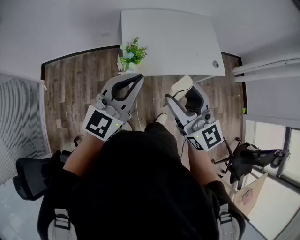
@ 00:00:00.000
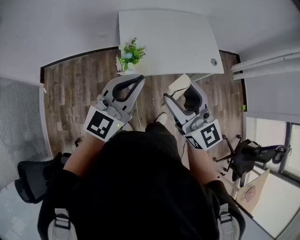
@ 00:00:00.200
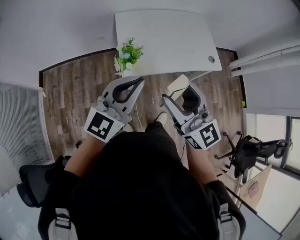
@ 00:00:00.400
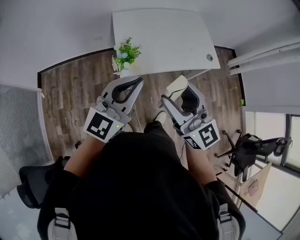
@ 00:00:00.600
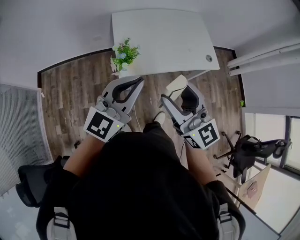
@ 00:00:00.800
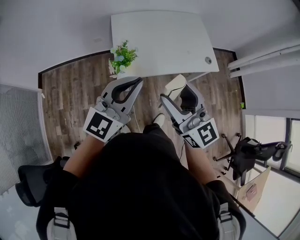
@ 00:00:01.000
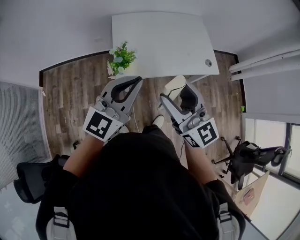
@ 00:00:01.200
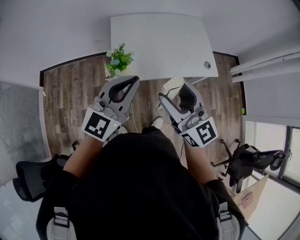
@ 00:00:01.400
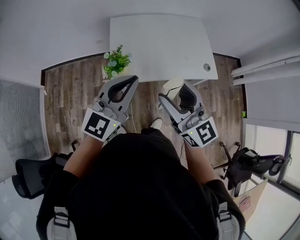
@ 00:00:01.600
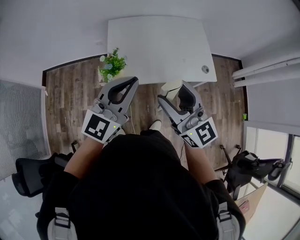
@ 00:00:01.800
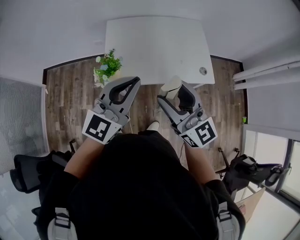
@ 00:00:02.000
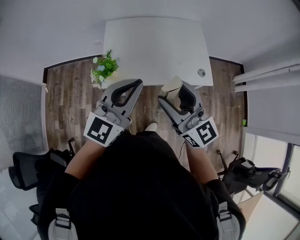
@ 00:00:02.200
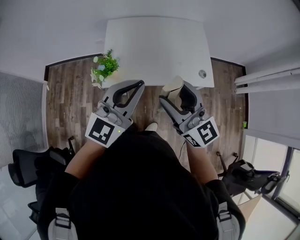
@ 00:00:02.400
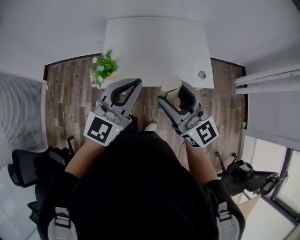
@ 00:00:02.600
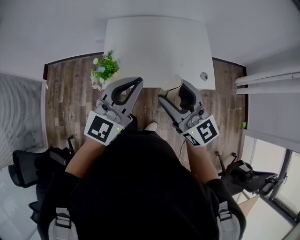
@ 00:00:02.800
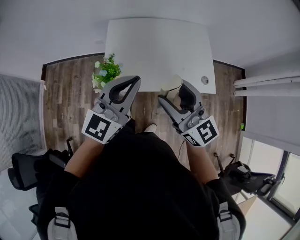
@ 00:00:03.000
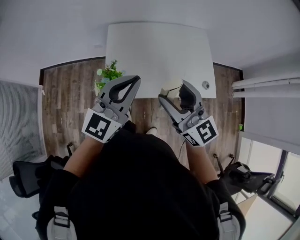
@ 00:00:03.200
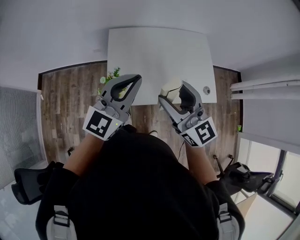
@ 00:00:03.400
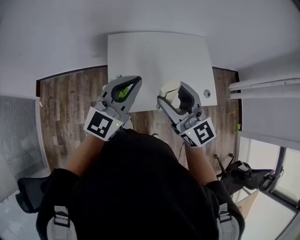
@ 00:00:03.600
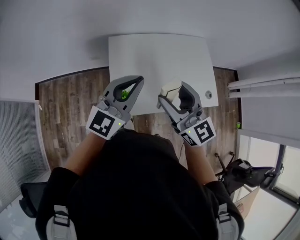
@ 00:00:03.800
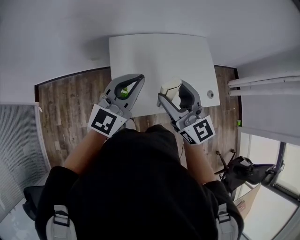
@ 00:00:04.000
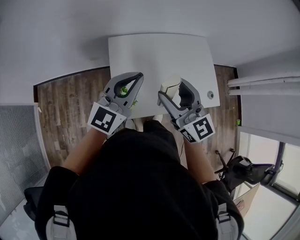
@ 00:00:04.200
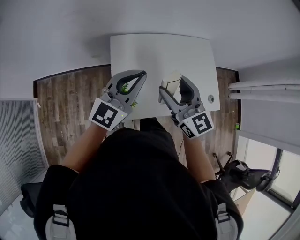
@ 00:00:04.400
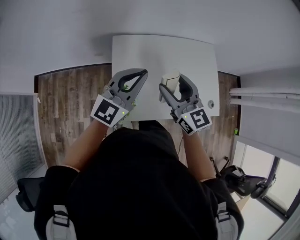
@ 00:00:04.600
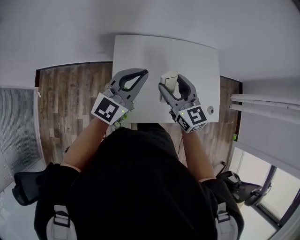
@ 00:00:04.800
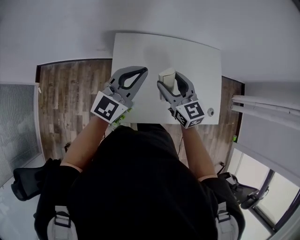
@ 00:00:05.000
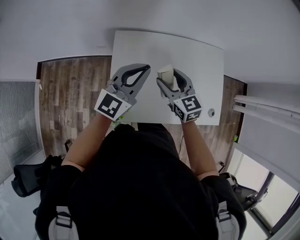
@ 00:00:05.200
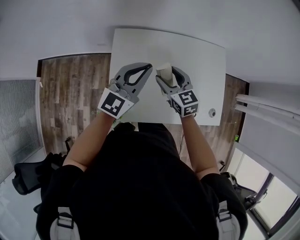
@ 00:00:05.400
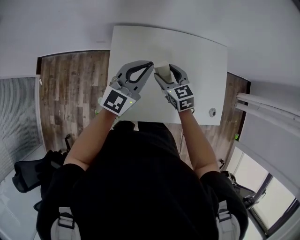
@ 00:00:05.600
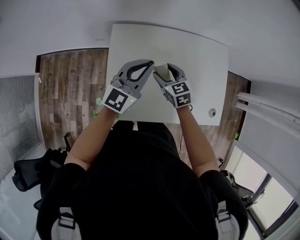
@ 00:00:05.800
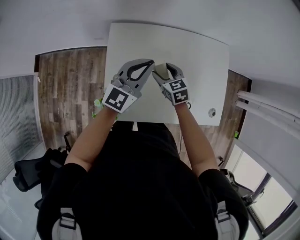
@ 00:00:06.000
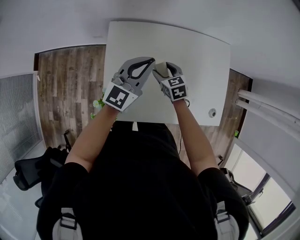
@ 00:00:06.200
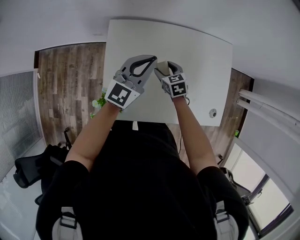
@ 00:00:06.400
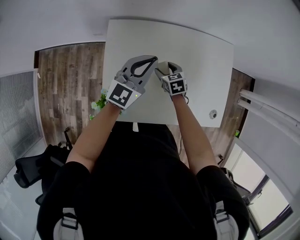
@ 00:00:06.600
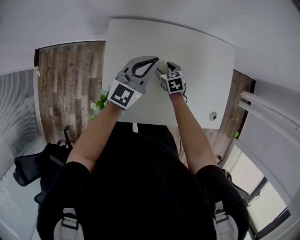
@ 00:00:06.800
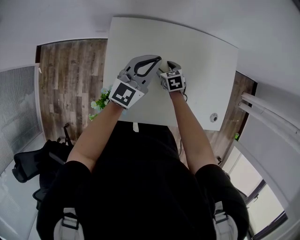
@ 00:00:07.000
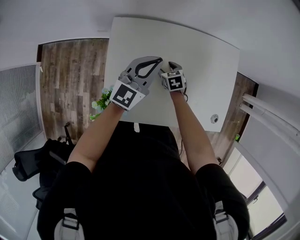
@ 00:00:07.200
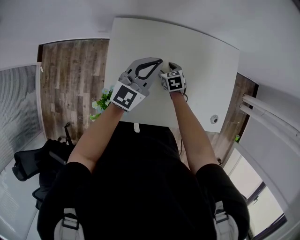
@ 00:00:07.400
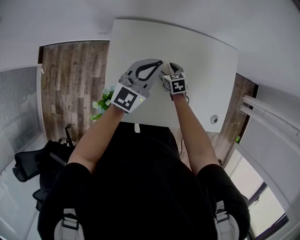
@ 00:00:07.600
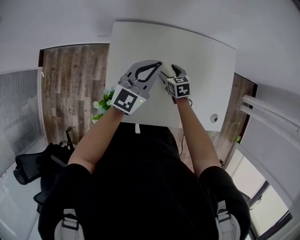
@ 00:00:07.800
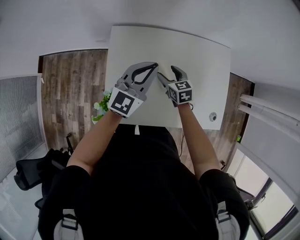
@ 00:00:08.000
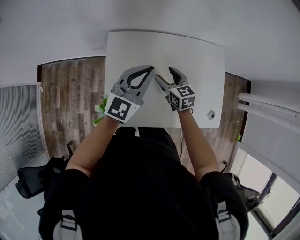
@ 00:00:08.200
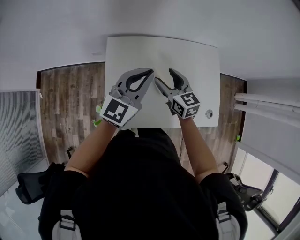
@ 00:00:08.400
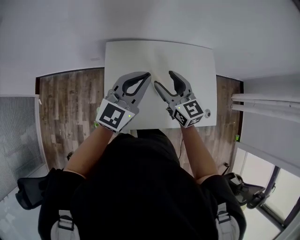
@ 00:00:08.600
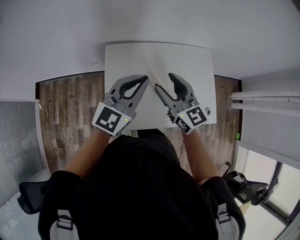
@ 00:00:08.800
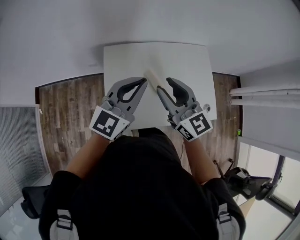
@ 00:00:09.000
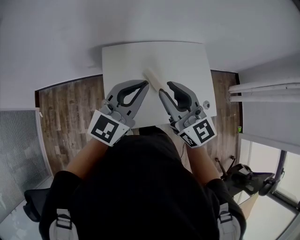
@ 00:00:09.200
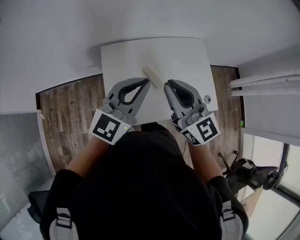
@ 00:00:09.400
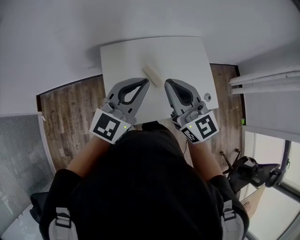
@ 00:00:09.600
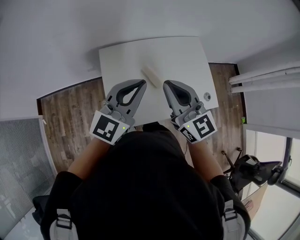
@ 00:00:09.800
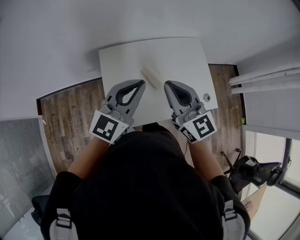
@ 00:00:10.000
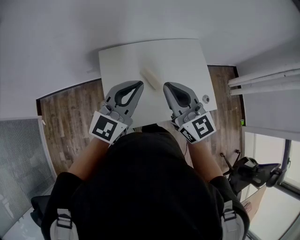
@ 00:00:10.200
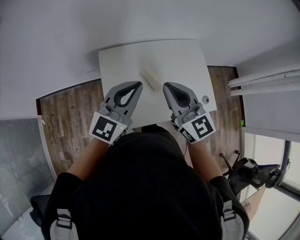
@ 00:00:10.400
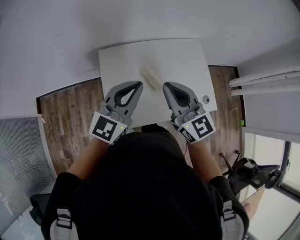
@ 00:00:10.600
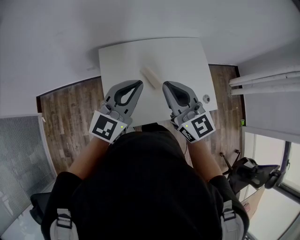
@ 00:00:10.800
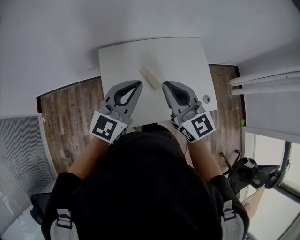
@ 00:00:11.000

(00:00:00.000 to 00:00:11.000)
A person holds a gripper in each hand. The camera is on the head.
00:00:00.000 - 00:00:01.600: The grippers both shift to the right by roughly 10 cm.
00:00:01.600 - 00:00:03.200: Both grippers travel together forward, approximately 10 cm.
00:00:03.200 - 00:00:04.800: The right gripper shifts some 25 cm forward and downward, while the left gripper is displaced forward by roughly 20 cm.
00:00:04.800 - 00:00:06.200: The left gripper moves downward, forward and to the right, about 15 cm. Meanwhile the right gripper travels downward and forward by about 25 cm, and angles its fingers downward, by about 30 degrees.
00:00:07.800 - 00:00:09.400: The left gripper goes approximately 25 cm upward and backward. The right gripper moves upward and backward, some 50 cm, angles its fingers upward, by roughly 50 degrees, and closes its fingers.
00:00:09.400 - 00:00:11.000: The grippers stay close to where they were, moving slightly.

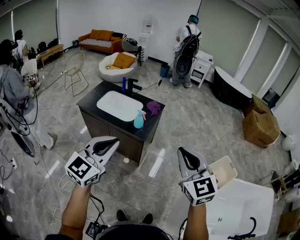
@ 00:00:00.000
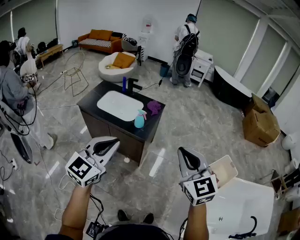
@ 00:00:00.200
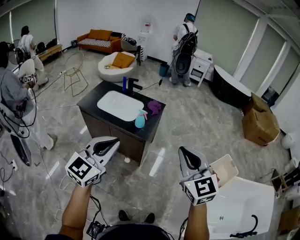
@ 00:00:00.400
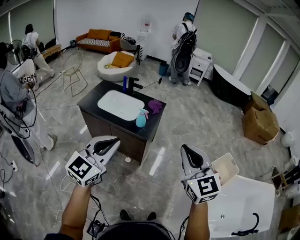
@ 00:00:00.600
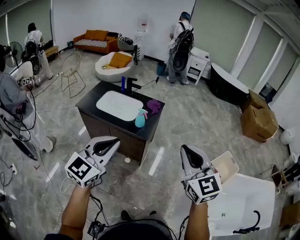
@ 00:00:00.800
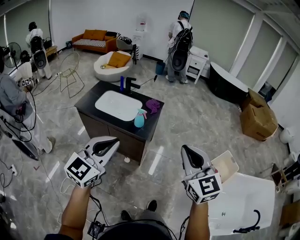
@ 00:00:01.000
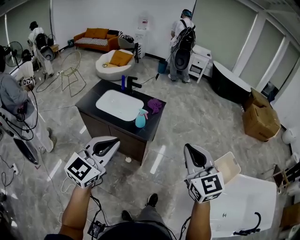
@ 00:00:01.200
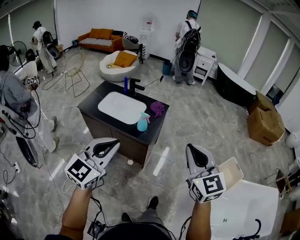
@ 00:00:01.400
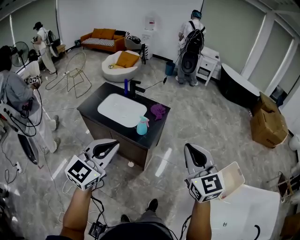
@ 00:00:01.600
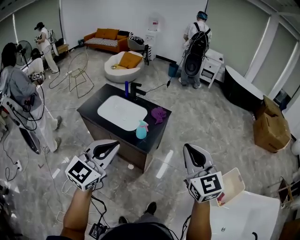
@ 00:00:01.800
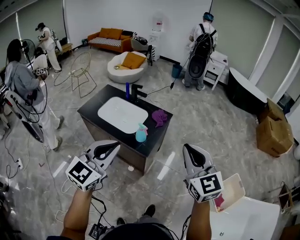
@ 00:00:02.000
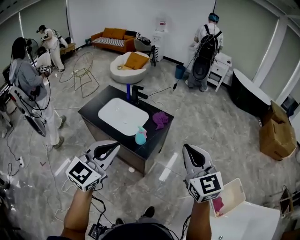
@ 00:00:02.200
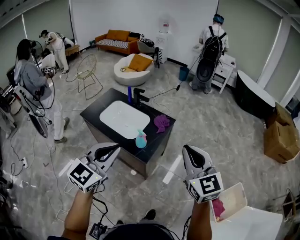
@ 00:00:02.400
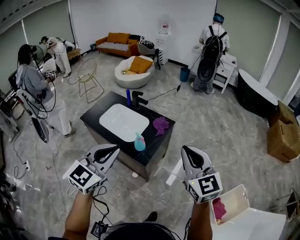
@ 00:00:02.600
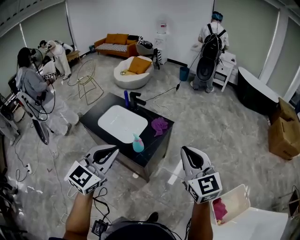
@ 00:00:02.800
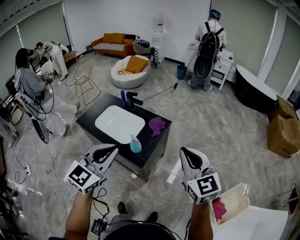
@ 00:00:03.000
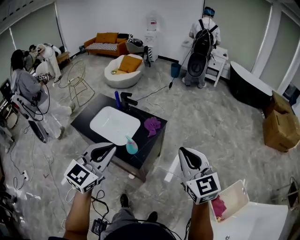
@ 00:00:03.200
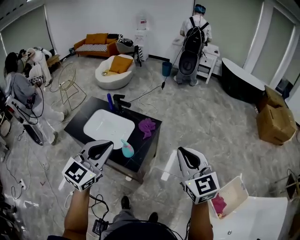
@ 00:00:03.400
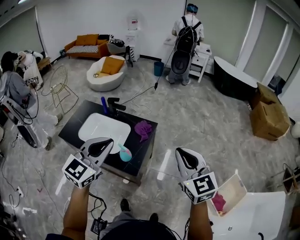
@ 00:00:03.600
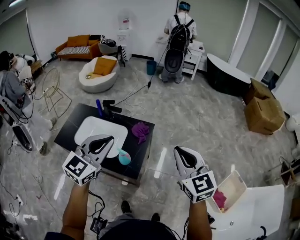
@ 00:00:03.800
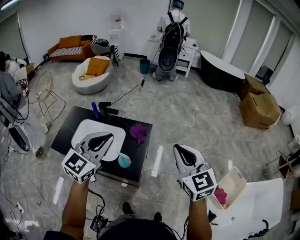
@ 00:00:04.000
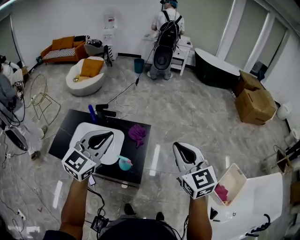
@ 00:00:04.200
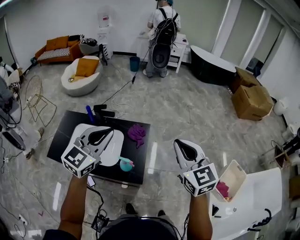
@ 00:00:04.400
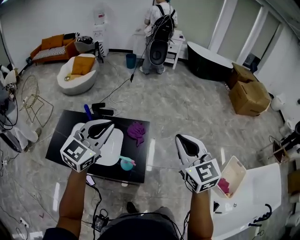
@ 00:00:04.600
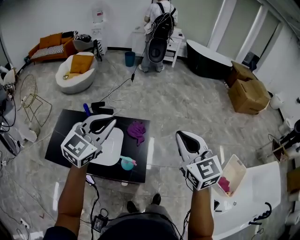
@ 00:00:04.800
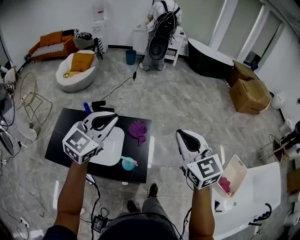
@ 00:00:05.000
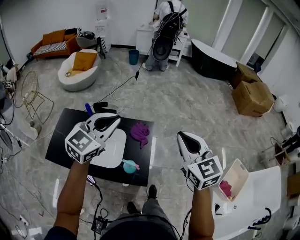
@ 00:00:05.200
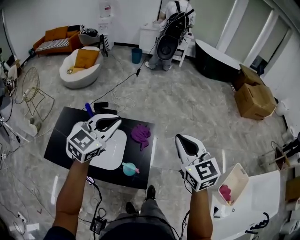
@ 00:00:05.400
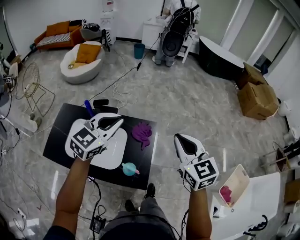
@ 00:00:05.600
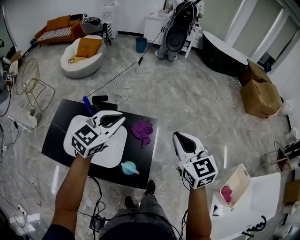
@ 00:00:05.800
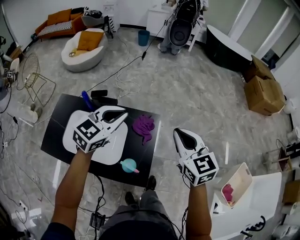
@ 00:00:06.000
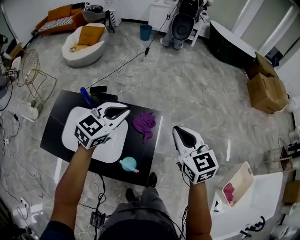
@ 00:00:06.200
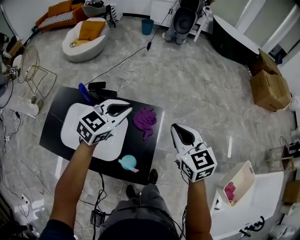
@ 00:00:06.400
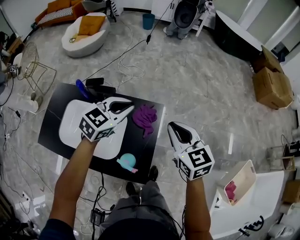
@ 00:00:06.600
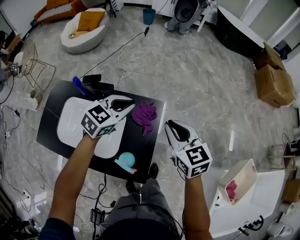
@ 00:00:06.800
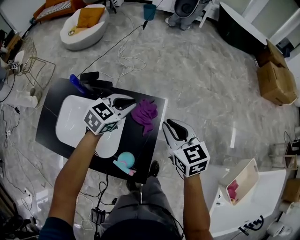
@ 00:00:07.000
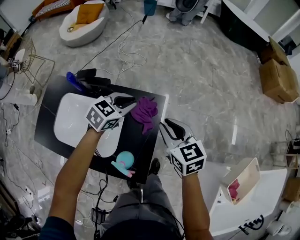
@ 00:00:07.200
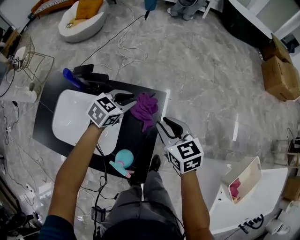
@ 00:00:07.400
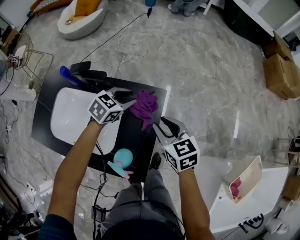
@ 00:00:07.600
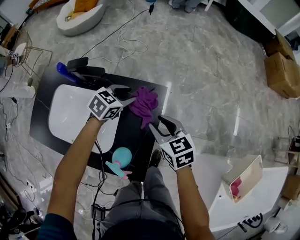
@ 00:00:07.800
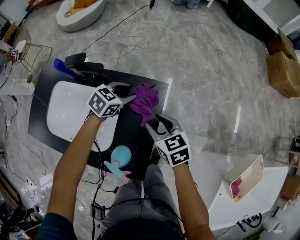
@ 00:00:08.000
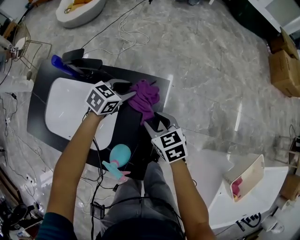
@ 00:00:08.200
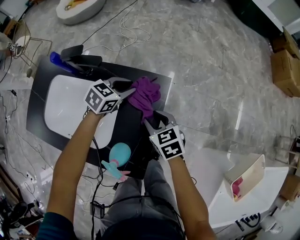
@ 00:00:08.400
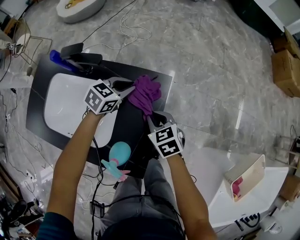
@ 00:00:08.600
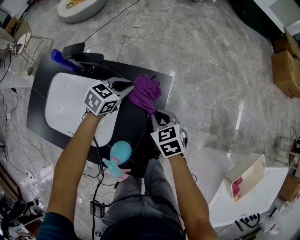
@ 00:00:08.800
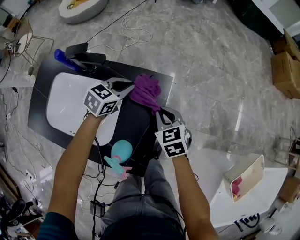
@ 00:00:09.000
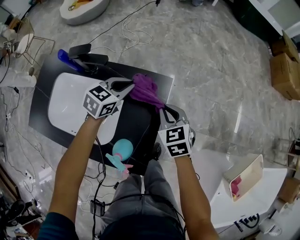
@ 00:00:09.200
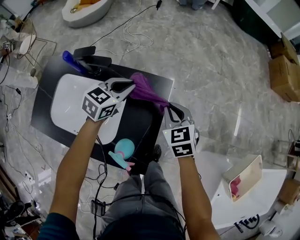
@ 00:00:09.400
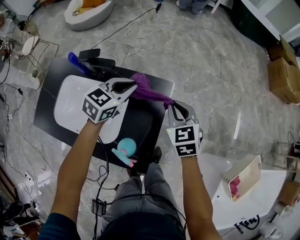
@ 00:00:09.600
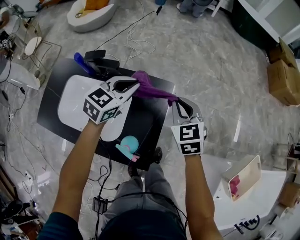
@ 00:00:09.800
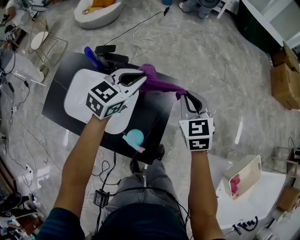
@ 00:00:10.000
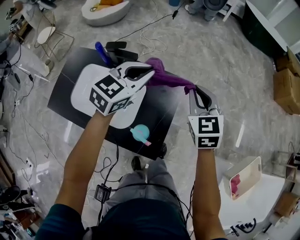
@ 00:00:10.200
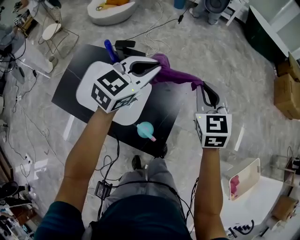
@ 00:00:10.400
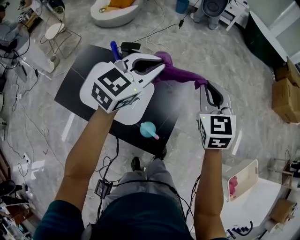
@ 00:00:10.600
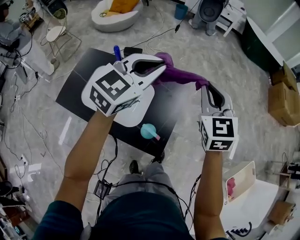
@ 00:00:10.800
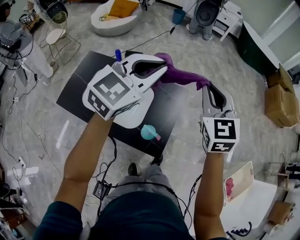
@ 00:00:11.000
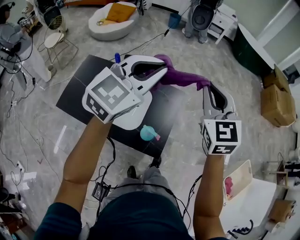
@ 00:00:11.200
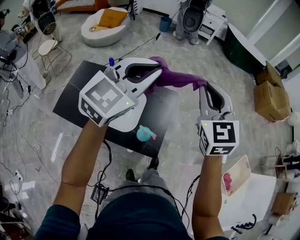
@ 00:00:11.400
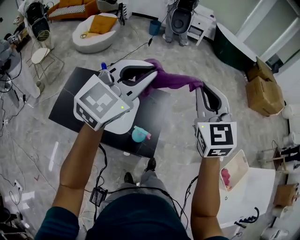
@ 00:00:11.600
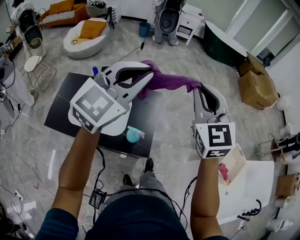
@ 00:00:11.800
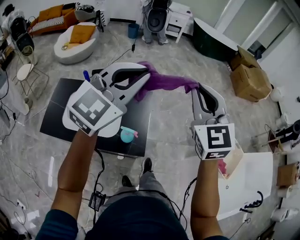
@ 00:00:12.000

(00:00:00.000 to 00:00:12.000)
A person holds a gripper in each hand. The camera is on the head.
00:00:00.000 - 00:00:01.600: The grippers both shift forward by some 10 cm.
00:00:01.600 - 00:00:03.000: Both grippers move forward and to the right, some 20 cm.
00:00:03.000 - 00:00:04.400: The left gripper heads forward and to the left, covering some 25 cm, and turns by about 20 degrees, while the right gripper travels forward and to the left by roughly 15 cm, and turns by approximately 20 degrees.
00:00:04.400 - 00:00:06.000: The right gripper travels forward, downward and to the left by about 20 cm; the left gripper heads forward and downward, covering approximately 25 cm.
00:00:06.000 - 00:00:07.600: The grippers both shift downward by some 25 cm. The right gripper turns by roughly 20 degrees, and opens. Meanwhile the left gripper turns by approximately 30 degrees, and opens its fingers.
00:00:07.600 - 00:00:09.000: The right gripper travels downward by approximately 10 cm, and closes up. The left gripper closes its fingers.
00:00:09.000 - 00:00:10.400: The two grippers go approximately 30 cm upward. The left gripper turns by some 30 degrees. The right gripper swivels about 30 degrees.
00:00:10.400 - 00:00:12.000: The two grippers go roughly 30 cm upward and backward. The left gripper swivels approximately 30 degrees; the right gripper changes its angle by approximately 20 degrees.
